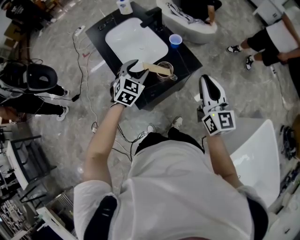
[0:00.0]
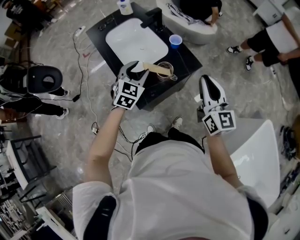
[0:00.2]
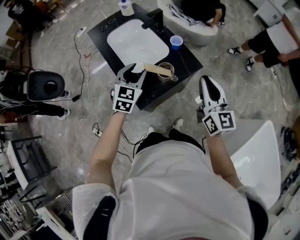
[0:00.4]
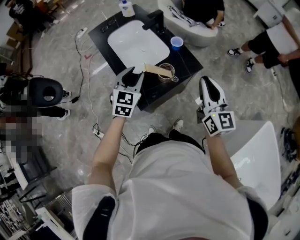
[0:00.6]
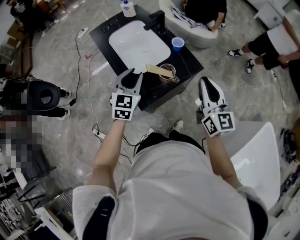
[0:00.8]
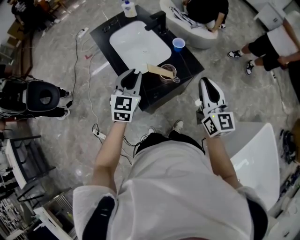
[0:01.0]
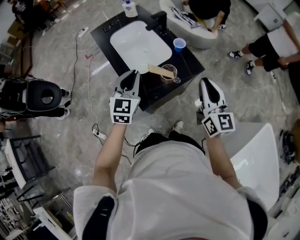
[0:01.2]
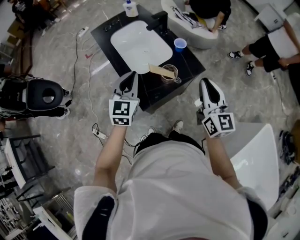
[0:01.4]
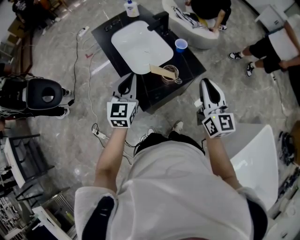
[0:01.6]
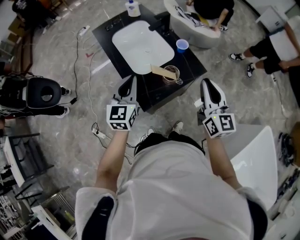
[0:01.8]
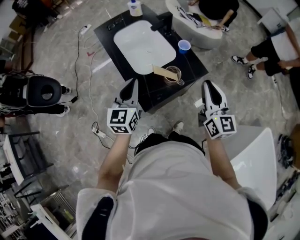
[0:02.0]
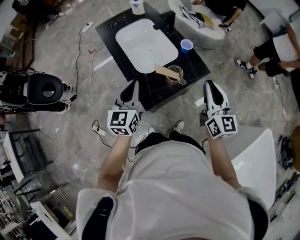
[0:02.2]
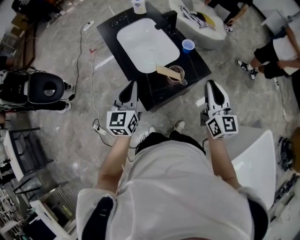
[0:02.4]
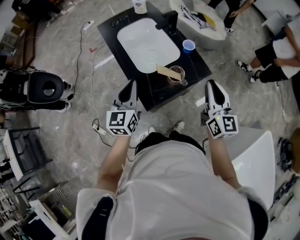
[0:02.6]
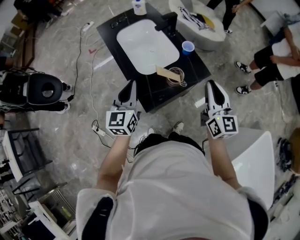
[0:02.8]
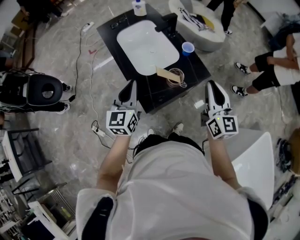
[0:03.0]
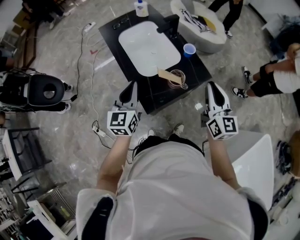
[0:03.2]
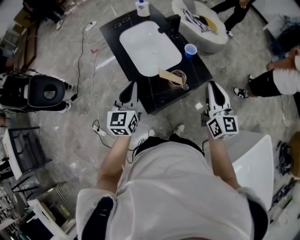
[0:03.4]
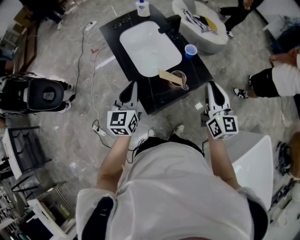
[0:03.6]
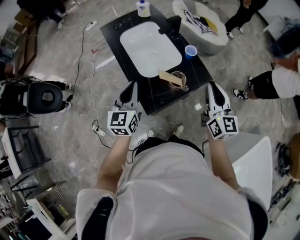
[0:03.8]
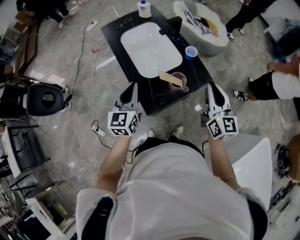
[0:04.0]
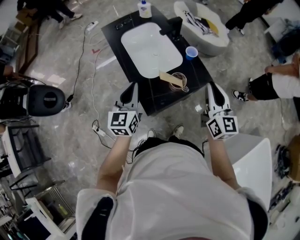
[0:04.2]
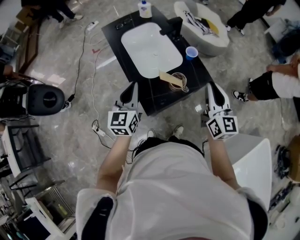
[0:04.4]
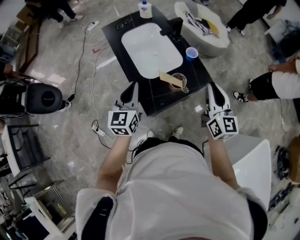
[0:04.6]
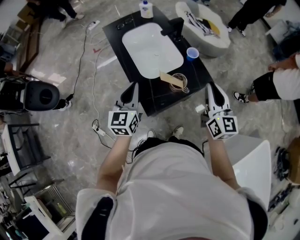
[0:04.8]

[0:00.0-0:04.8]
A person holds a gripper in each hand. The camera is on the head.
0:00.0 to 0:01.6: The left gripper is displaced upward, to the left and backward by some 10 cm, changes its angle by some 30 degrees, and closes.
0:01.6 to 0:04.8: The grippers stay close to where they were, moving slightly.

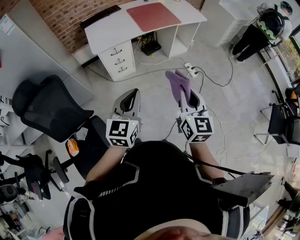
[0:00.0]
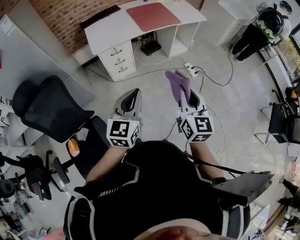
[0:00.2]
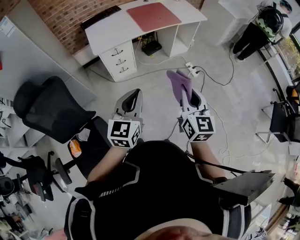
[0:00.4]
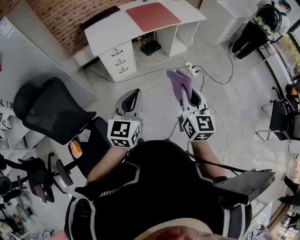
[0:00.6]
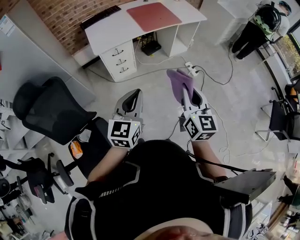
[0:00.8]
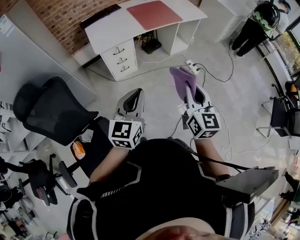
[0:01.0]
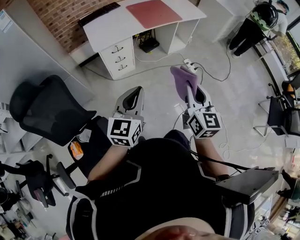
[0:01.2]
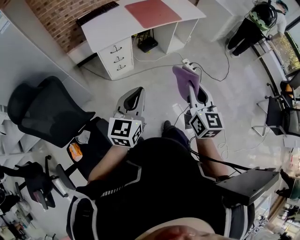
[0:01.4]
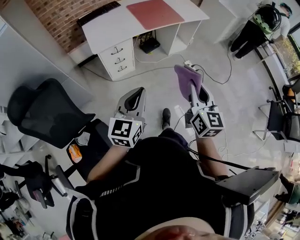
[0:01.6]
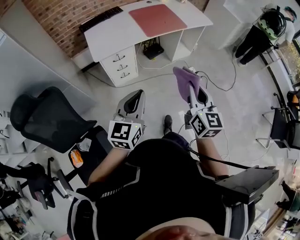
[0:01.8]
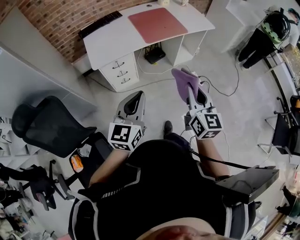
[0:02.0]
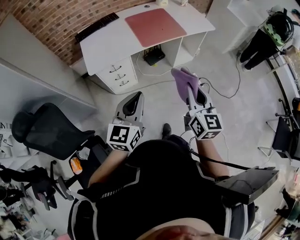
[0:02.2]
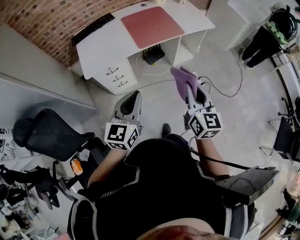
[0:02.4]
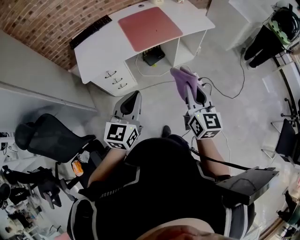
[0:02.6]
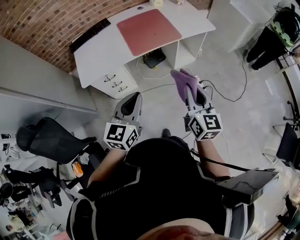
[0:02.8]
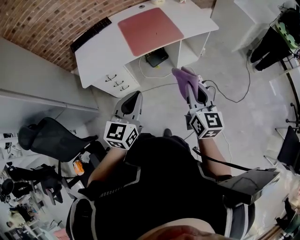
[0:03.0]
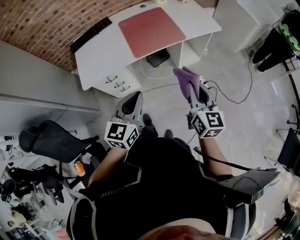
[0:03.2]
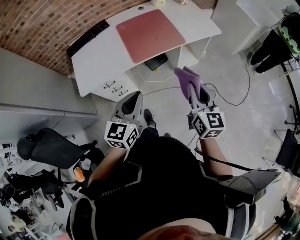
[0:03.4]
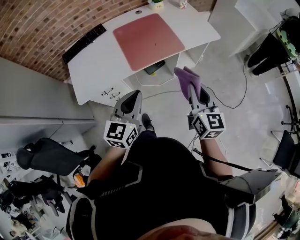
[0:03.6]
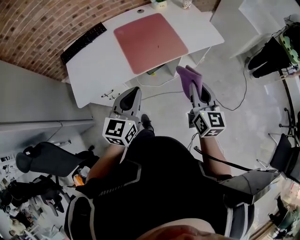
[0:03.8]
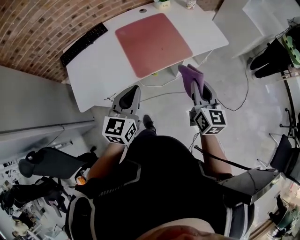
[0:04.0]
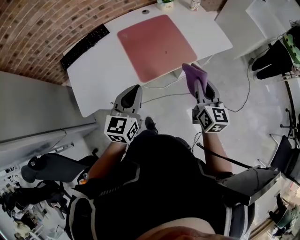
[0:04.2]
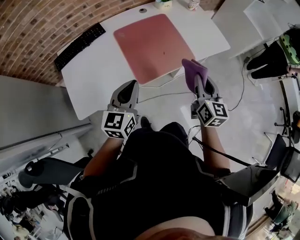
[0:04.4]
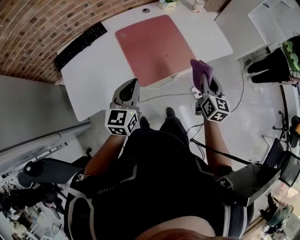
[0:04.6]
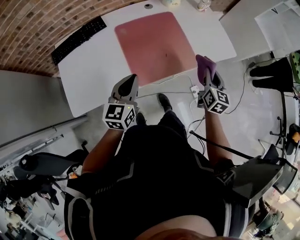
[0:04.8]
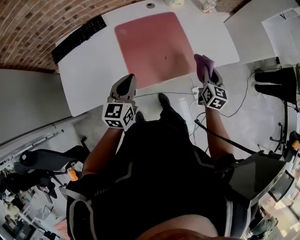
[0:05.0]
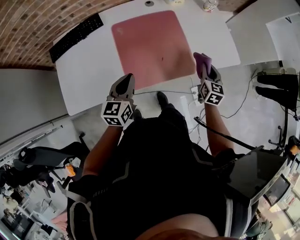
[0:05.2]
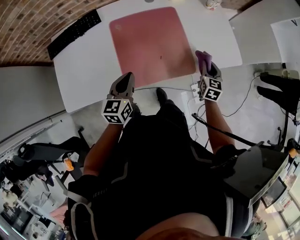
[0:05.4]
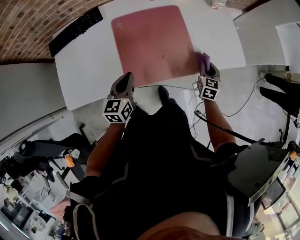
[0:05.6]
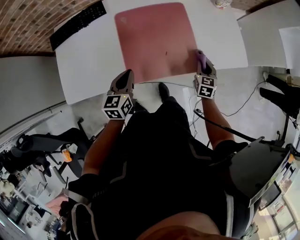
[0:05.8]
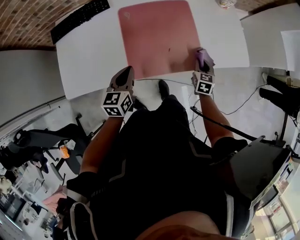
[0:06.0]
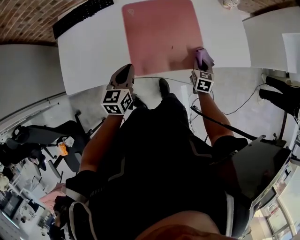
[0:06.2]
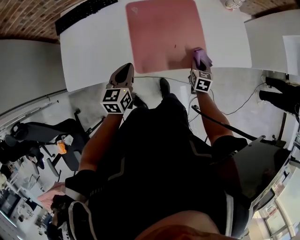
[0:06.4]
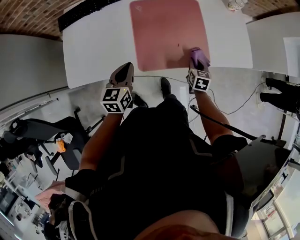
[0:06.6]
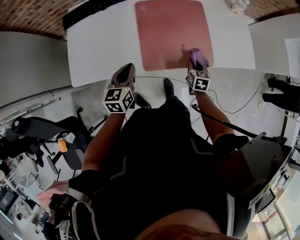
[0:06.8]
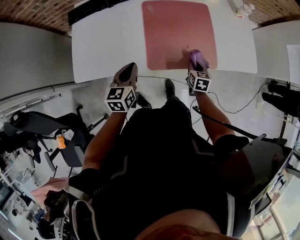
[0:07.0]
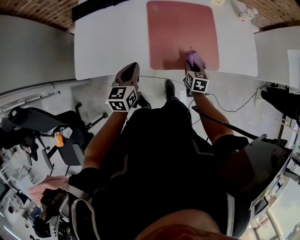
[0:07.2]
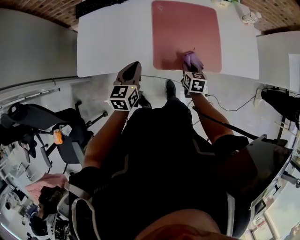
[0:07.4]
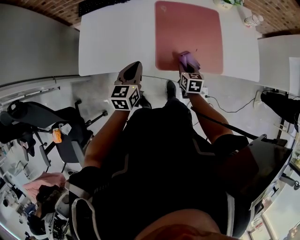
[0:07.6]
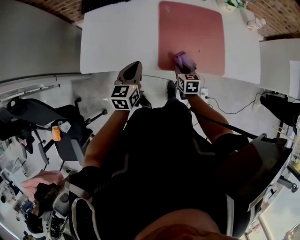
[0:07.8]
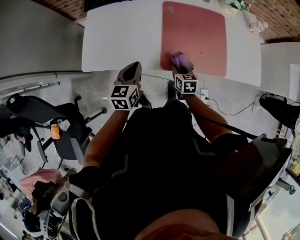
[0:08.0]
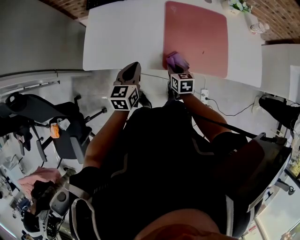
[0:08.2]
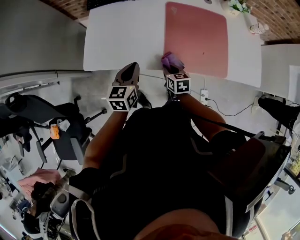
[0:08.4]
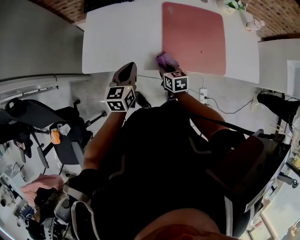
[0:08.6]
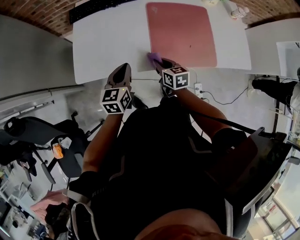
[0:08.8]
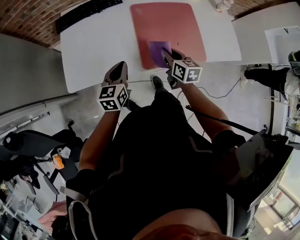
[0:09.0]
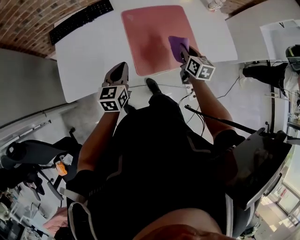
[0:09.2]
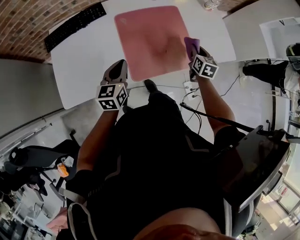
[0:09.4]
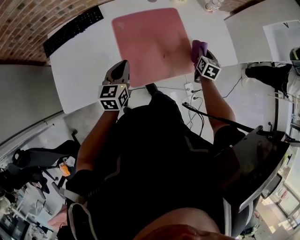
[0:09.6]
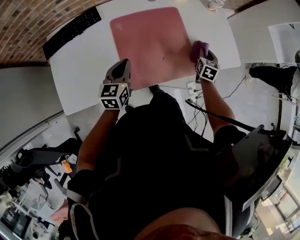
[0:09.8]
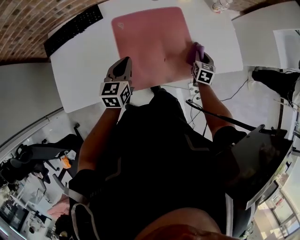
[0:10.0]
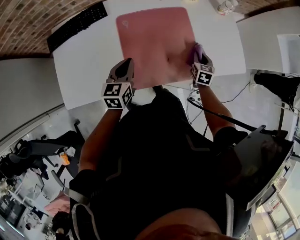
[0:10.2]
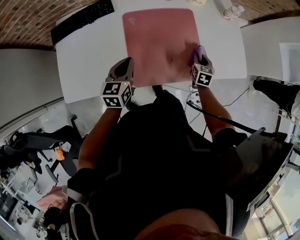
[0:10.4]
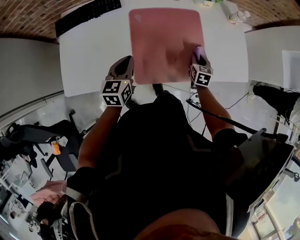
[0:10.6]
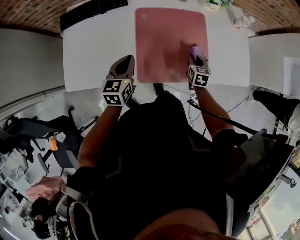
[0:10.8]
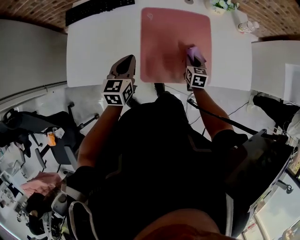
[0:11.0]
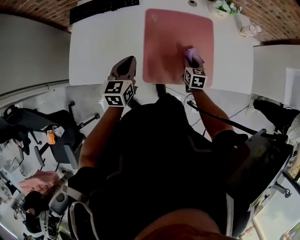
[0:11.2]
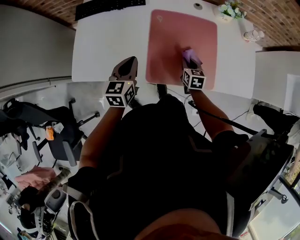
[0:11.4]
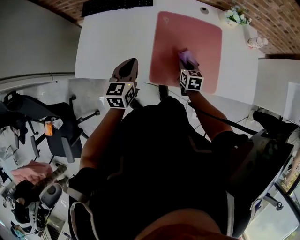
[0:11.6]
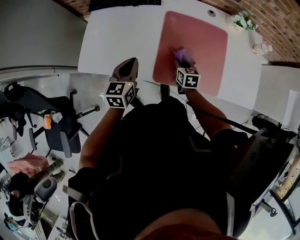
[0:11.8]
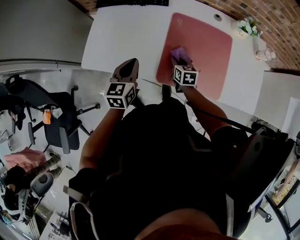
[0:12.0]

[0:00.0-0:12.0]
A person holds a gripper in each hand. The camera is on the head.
0:00.0 to 0:01.6: The right gripper shifts by roughly 5 cm, while the left gripper moves some 5 cm.
0:01.6 to 0:03.0: The two grippers go about 30 cm forward and to the right.
0:03.0 to 0:04.4: The right gripper heads forward, covering about 30 cm; the left gripper is displaced forward and to the left by about 30 cm.
0:04.4 to 0:06.0: The left gripper shifts about 15 cm downward and forward, and rotates some 30 degrees, while the right gripper is displaced downward and forward by about 30 cm, and changes its angle by roughly 30 degrees.
0:06.0 to 0:07.6: The left gripper moves to the left and backward, some 10 cm. The right gripper heads to the left, covering some 20 cm, and turns by about 20 degrees.
0:07.6 to 0:09.0: The right gripper goes roughly 10 cm upward, and reaches roughly 15 cm to the left, then returns.
0:09.0 to 0:10.4: The left gripper moves forward and to the right, some 15 cm, while the right gripper is displaced to the right, forward and downward by about 30 cm, and rotates approximately 30 degrees.
0:10.4 to 0:12.0: The right gripper changes place by some 30 cm, and changes its angle by about 40 degrees. The left gripper ends up approximately 15 cm from where it was.

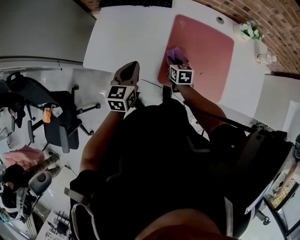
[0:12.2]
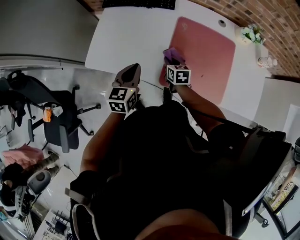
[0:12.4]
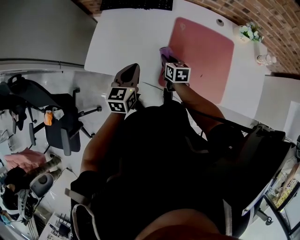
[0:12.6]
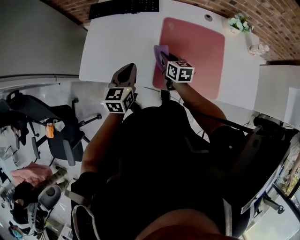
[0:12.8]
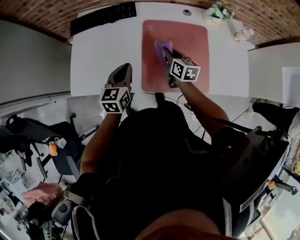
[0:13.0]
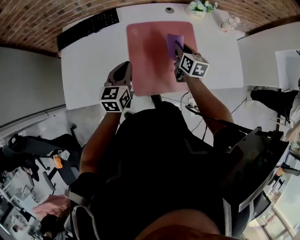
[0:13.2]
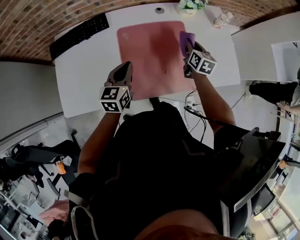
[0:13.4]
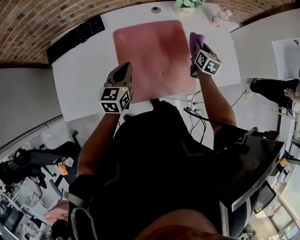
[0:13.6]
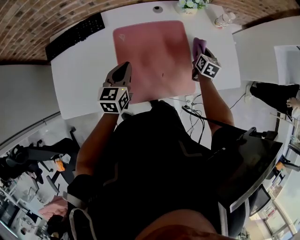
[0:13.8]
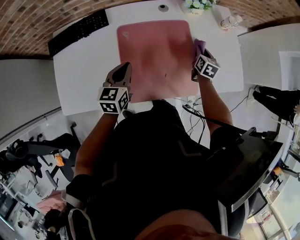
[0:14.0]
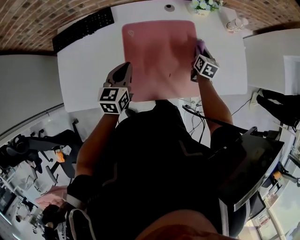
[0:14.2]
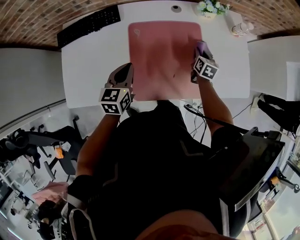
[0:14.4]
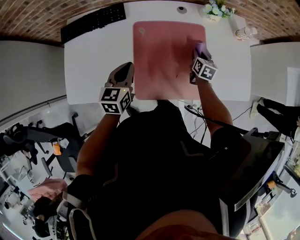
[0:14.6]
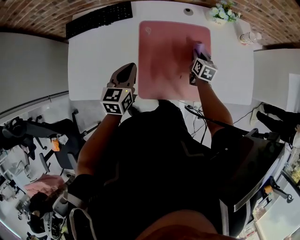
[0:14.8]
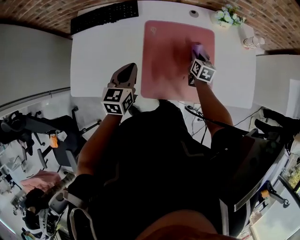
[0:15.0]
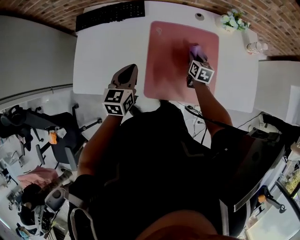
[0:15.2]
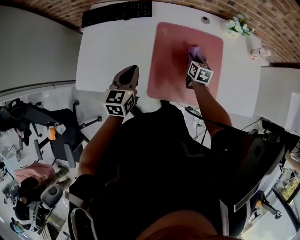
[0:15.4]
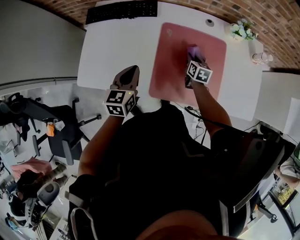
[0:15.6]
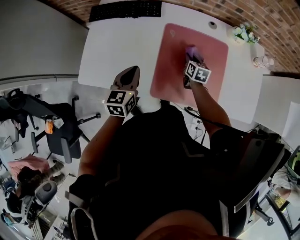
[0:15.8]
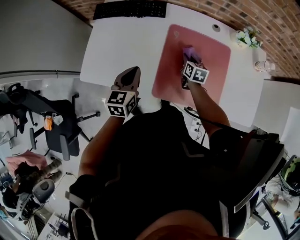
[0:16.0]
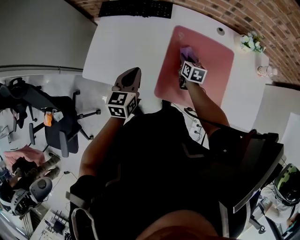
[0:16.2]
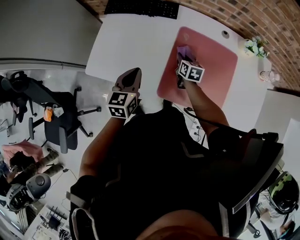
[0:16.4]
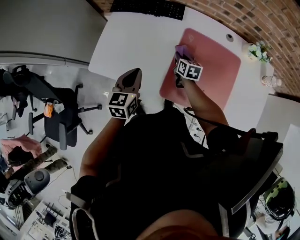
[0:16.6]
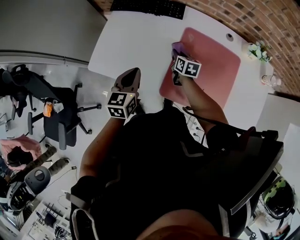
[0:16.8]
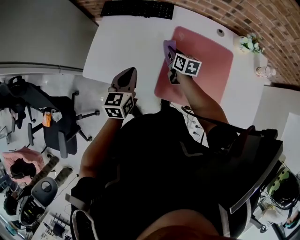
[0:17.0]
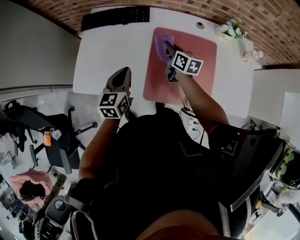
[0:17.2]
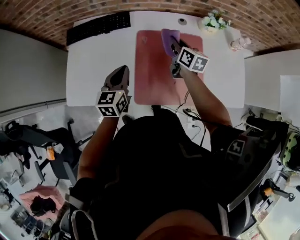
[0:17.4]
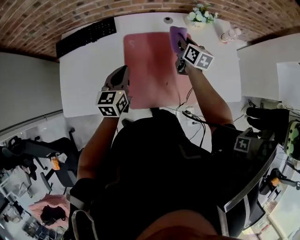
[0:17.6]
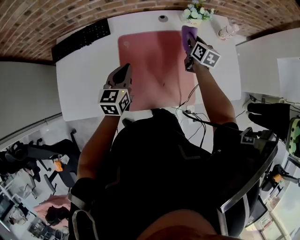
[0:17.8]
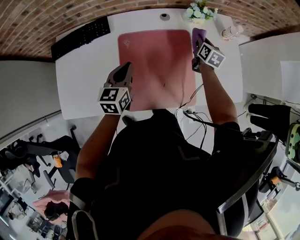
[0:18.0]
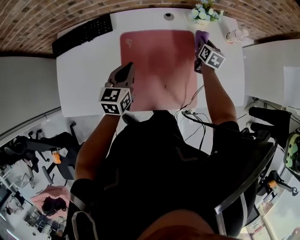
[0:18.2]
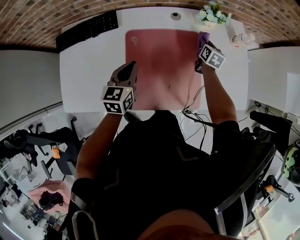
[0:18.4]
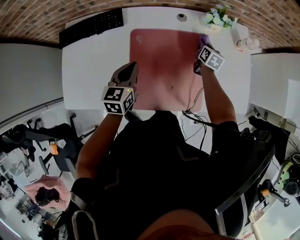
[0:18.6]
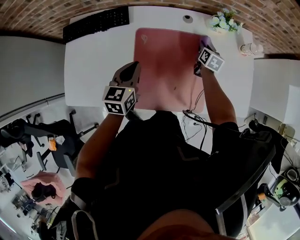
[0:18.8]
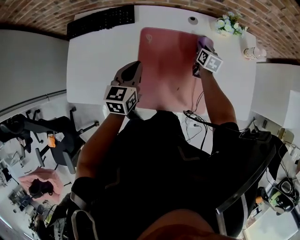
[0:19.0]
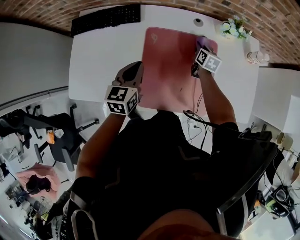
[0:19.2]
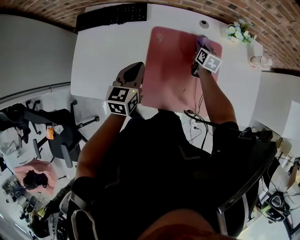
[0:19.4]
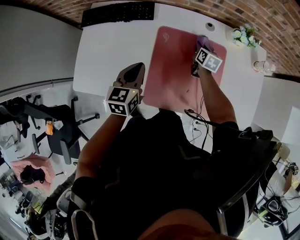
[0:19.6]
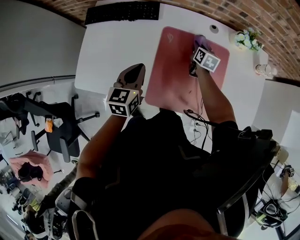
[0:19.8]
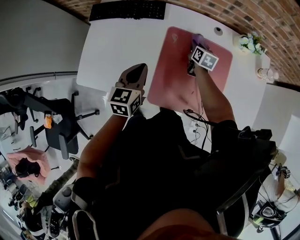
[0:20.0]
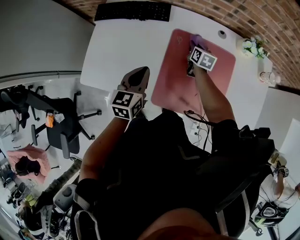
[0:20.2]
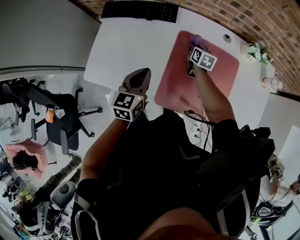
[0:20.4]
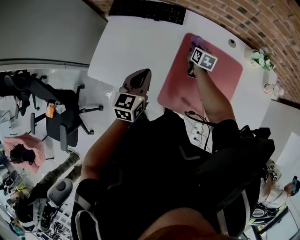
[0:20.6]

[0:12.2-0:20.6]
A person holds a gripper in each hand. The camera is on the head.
0:12.2 to 0:13.6: The right gripper shifts by some 40 cm, and swivels about 50 degrees. The left gripper moves some 20 cm, and turns by roughly 20 degrees.
0:13.6 to 0:15.0: The left gripper is displaced to the left by about 5 cm, while the right gripper goes roughly 15 cm to the left and downward.
0:15.0 to 0:16.4: The left gripper travels to the left and backward by about 10 cm. The right gripper heads to the left, covering about 20 cm, and changes its angle by roughly 20 degrees.
0:16.4 to 0:17.8: The right gripper ends up approximately 35 cm from where it was, and turns by about 30 degrees. The left gripper moves some 20 cm, and turns by approximately 20 degrees.
0:17.8 to 0:19.2: The right gripper travels downward and to the left by approximately 15 cm.
0:19.2 to 0:20.6: The right gripper goes roughly 20 cm to the left. Meanwhile the left gripper heads to the left and backward, covering approximately 10 cm.
